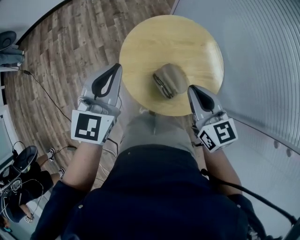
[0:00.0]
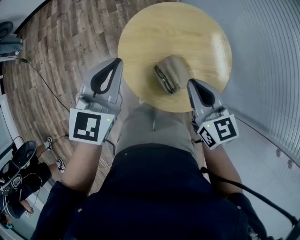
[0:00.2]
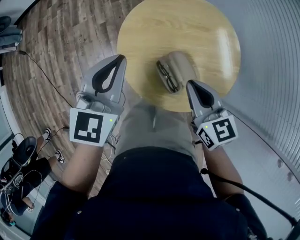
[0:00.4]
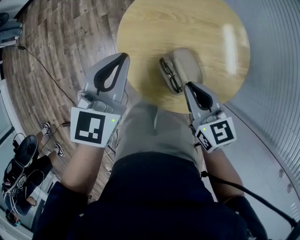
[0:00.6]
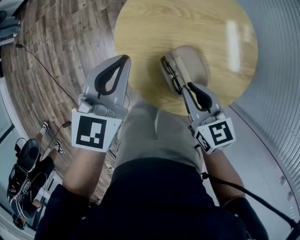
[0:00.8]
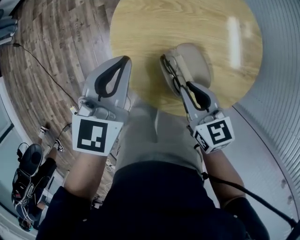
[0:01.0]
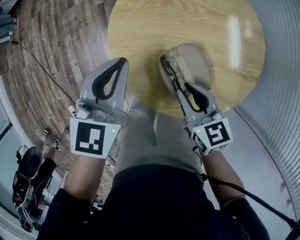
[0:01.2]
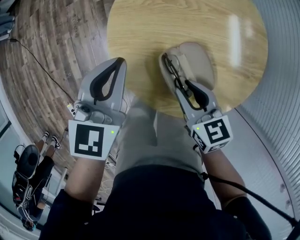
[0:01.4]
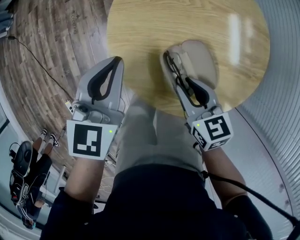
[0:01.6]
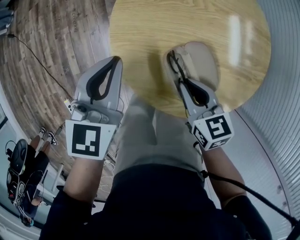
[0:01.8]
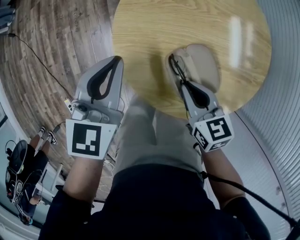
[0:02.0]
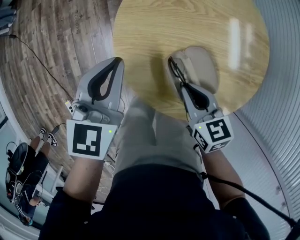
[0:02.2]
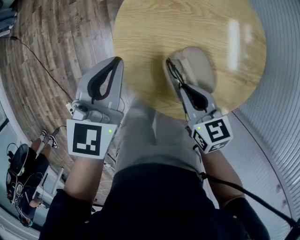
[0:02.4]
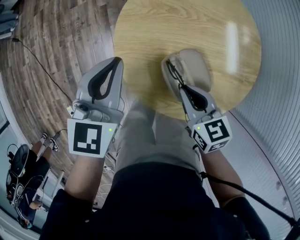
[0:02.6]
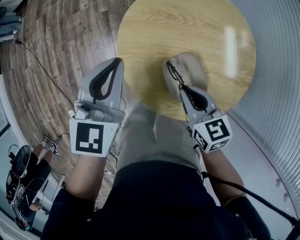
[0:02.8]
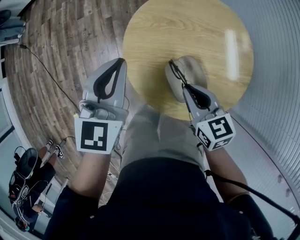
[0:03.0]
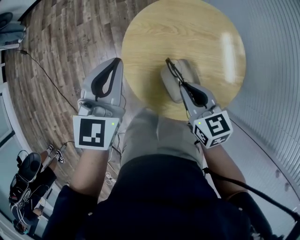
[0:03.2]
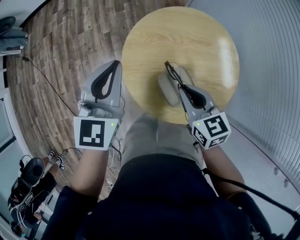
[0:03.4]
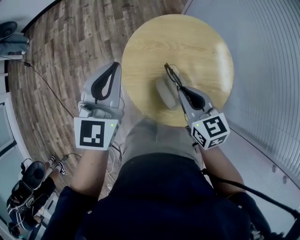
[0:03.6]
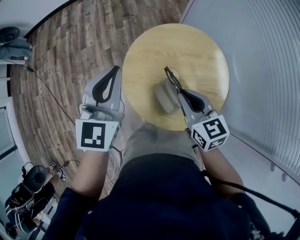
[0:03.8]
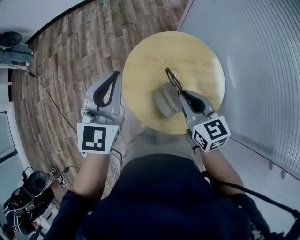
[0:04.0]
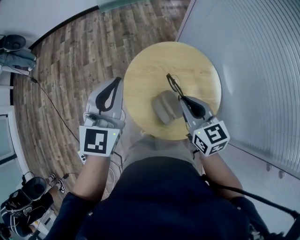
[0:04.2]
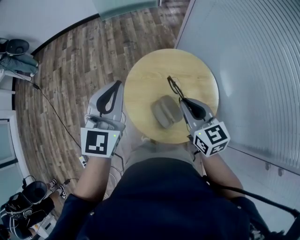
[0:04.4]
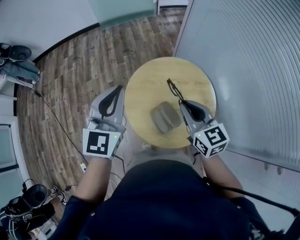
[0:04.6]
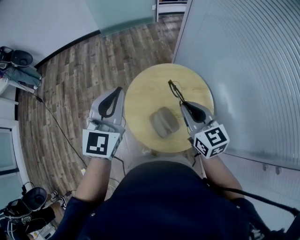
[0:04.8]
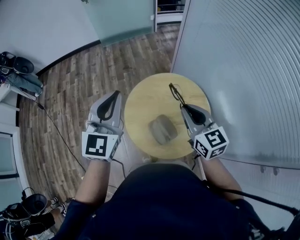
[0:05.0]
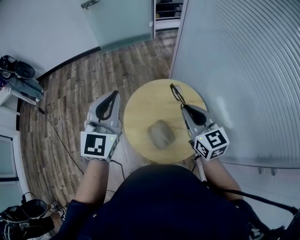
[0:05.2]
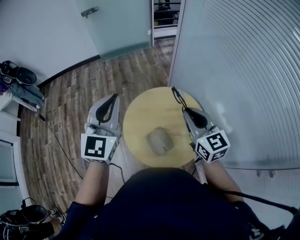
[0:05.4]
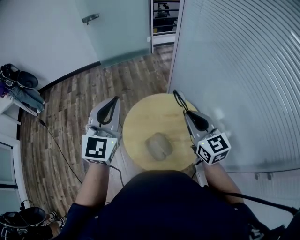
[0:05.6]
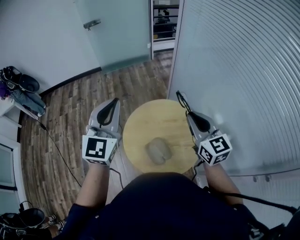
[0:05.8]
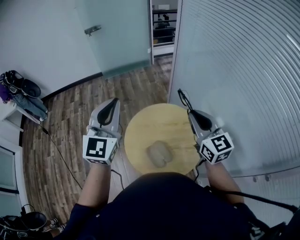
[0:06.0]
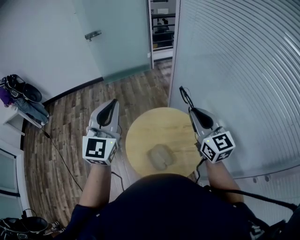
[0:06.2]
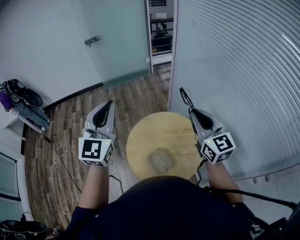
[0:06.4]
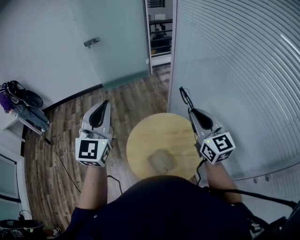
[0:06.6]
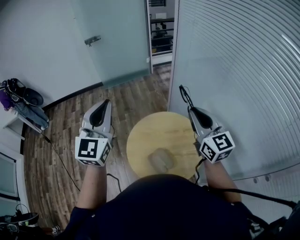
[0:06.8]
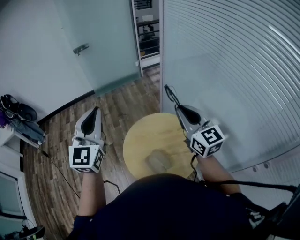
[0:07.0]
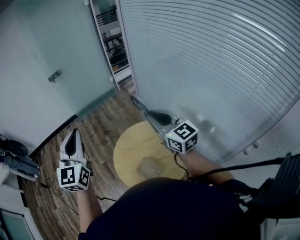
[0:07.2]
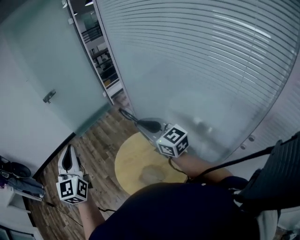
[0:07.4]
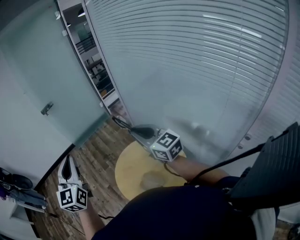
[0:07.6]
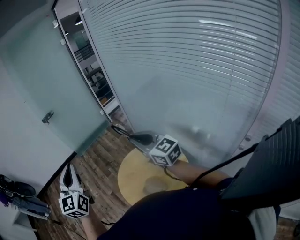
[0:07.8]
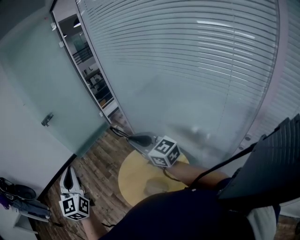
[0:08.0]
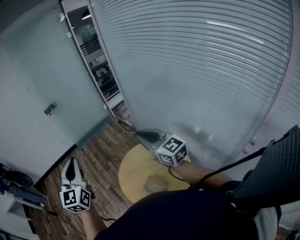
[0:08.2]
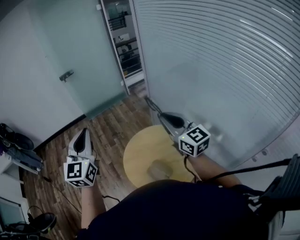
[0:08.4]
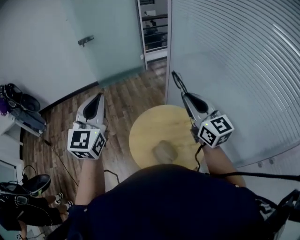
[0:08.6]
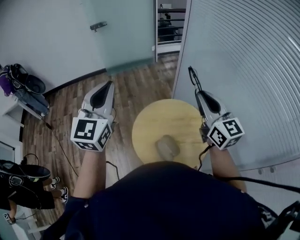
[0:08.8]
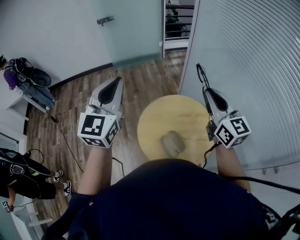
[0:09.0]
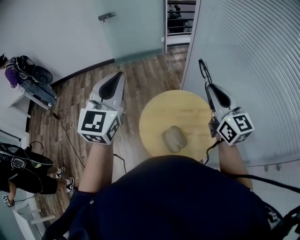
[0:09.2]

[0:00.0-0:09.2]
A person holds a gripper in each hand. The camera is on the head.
0:00.0 to 0:01.6: Both grippers move downward, some 20 cm. The left gripper changes its angle by approximately 20 degrees; the right gripper rotates roughly 30 degrees, and opens up.
0:01.6 to 0:03.0: Both grippers move upward, some 10 cm. The right gripper closes its fingers.
0:03.0 to 0:04.6: The grippers both shift upward by some 20 cm. The right gripper changes its angle by some 20 degrees.
0:04.6 to 0:06.2: The left gripper heads upward, covering about 15 cm, while the right gripper shifts about 20 cm upward and to the right, and changes its angle by approximately 20 degrees.
0:06.2 to 0:07.6: The left gripper ends up roughly 5 cm from where it was. Meanwhile the right gripper ends up roughly 5 cm from where it was.
0:07.6 to 0:09.2: The grippers move only a little.

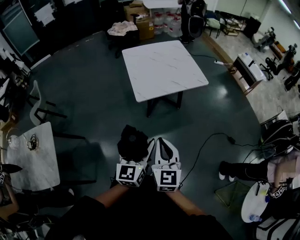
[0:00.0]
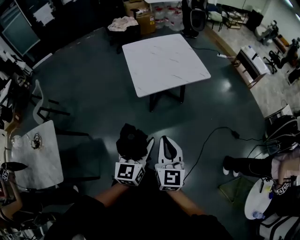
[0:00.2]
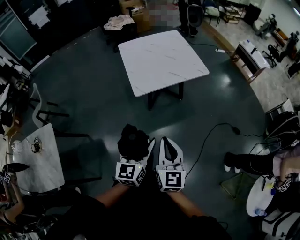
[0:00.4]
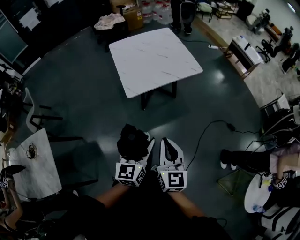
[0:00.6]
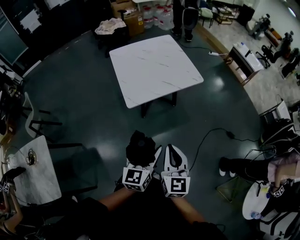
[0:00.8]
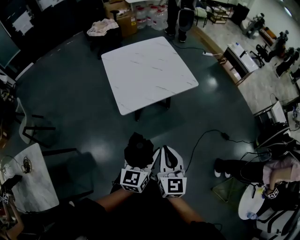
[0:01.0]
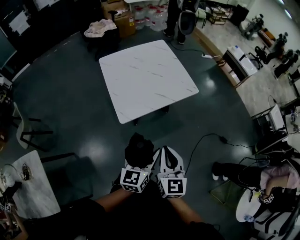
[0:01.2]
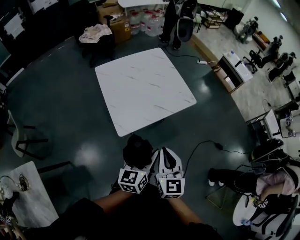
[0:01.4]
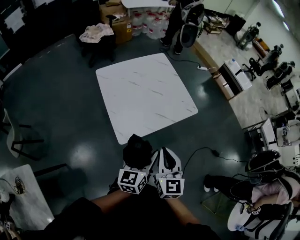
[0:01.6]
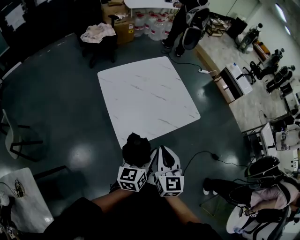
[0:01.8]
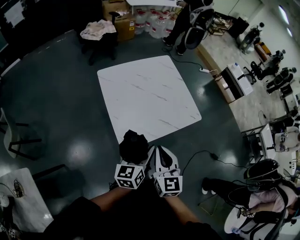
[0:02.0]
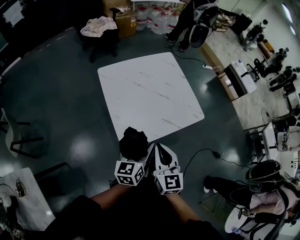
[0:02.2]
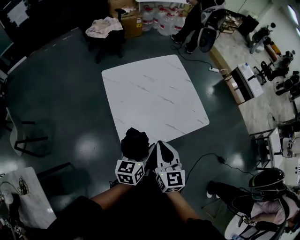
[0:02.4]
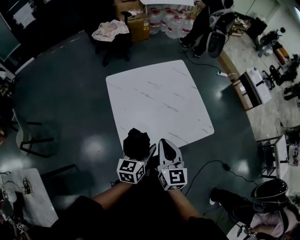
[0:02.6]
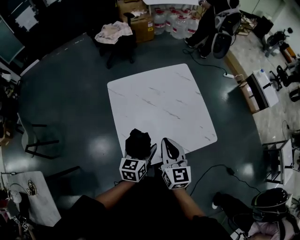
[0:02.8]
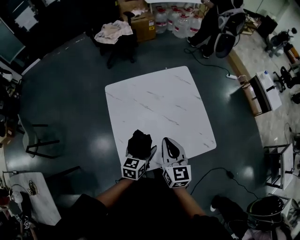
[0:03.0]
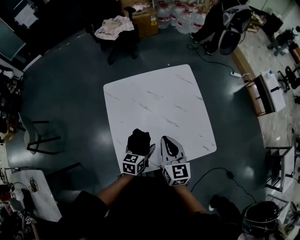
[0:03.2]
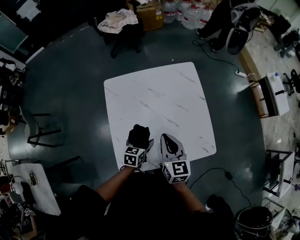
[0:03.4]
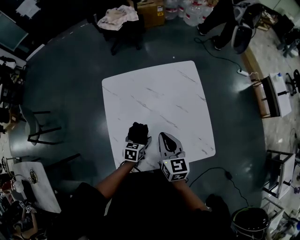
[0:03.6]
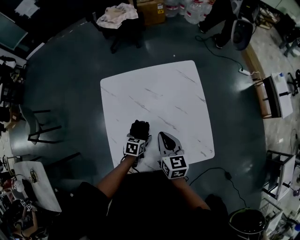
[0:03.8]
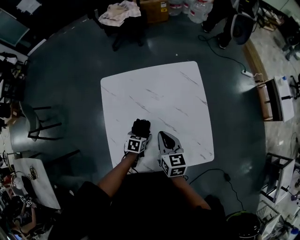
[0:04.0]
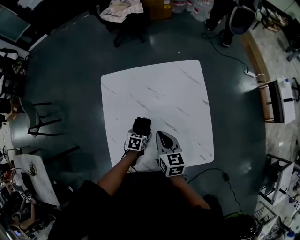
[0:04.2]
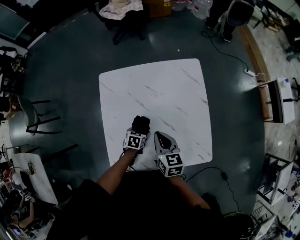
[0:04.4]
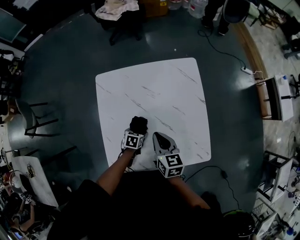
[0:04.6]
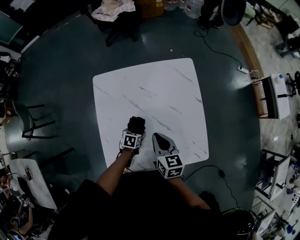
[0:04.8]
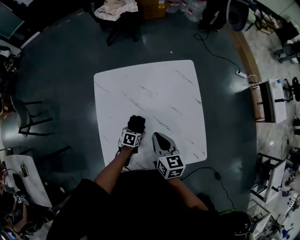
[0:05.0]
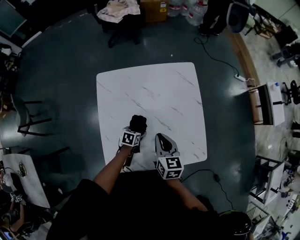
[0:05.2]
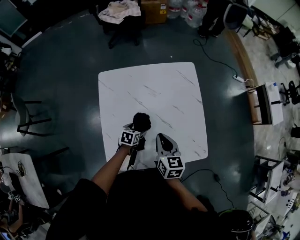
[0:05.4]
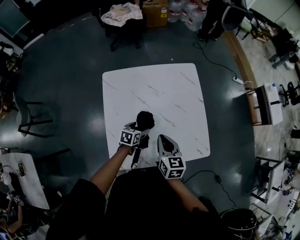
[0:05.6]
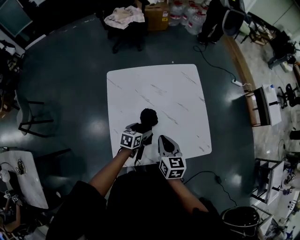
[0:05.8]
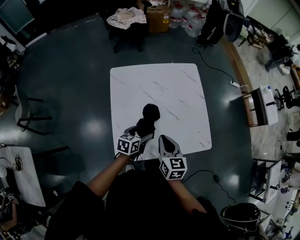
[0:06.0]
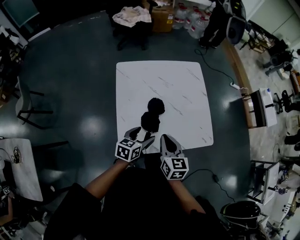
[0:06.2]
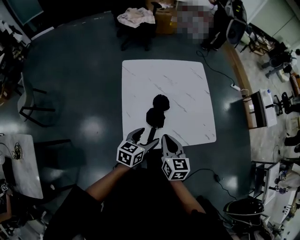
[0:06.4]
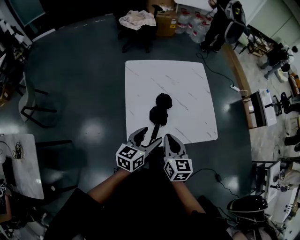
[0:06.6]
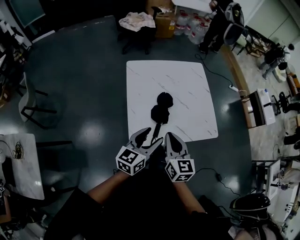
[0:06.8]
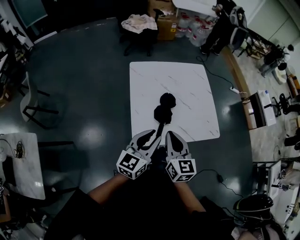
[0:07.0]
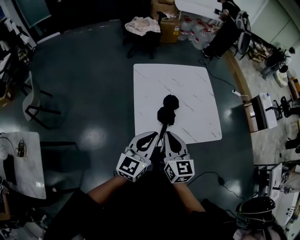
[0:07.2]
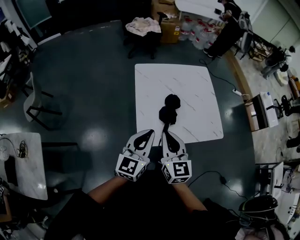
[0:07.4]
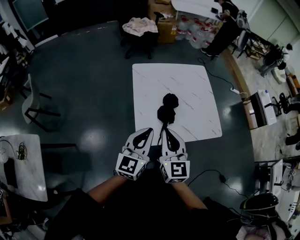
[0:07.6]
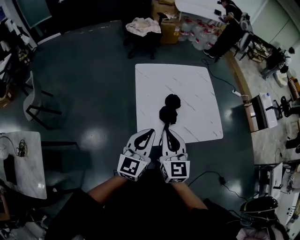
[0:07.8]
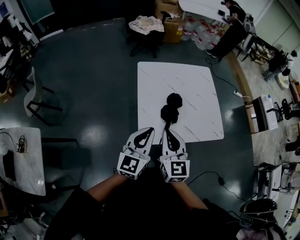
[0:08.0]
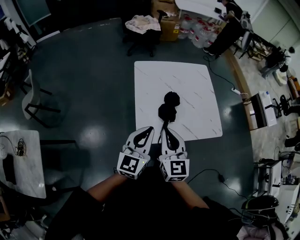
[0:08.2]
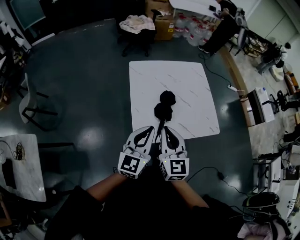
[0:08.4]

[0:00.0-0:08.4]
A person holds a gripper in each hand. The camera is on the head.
0:00.0 to 0:01.4: The grippers both shift forward by some 25 cm. The left gripper swivels roughly 20 degrees.
0:01.4 to 0:02.8: The two grippers go roughly 30 cm forward.
0:02.8 to 0:04.2: The right gripper shifts about 20 cm forward and downward, and turns by approximately 30 degrees. The left gripper travels downward and forward by roughly 30 cm, and tilts its fingers approximately 40 degrees downward.
0:04.2 to 0:05.6: The left gripper moves some 5 cm, while the right gripper travels backward by some 5 cm.
0:05.6 to 0:07.0: The right gripper is displaced backward, upward and to the left by about 25 cm. Meanwhile the left gripper shifts about 40 cm upward and backward, angles its fingers upward, by approximately 40 degrees, and closes.

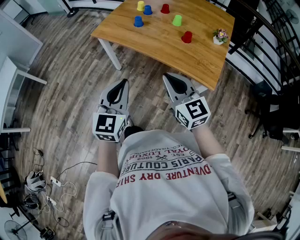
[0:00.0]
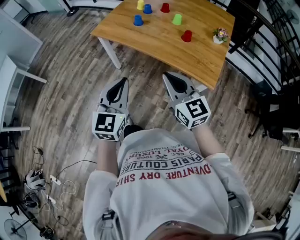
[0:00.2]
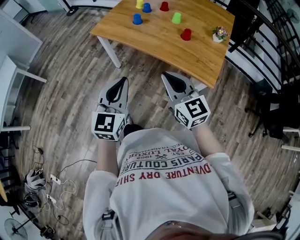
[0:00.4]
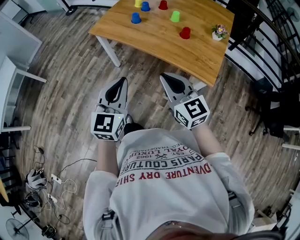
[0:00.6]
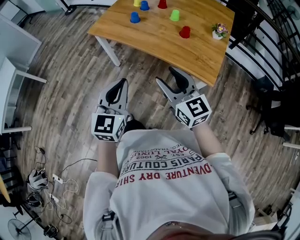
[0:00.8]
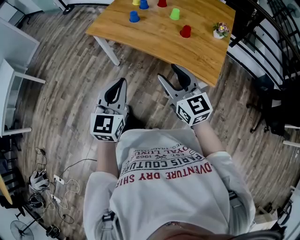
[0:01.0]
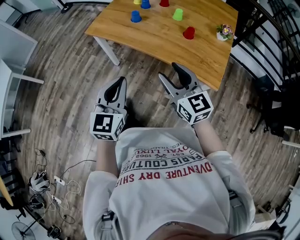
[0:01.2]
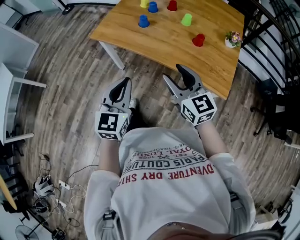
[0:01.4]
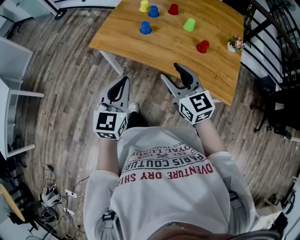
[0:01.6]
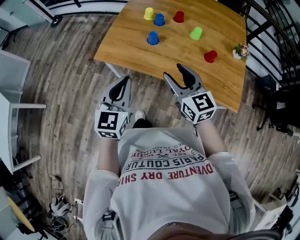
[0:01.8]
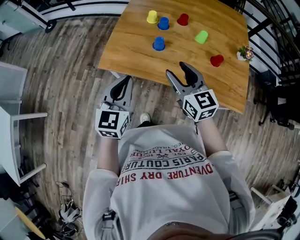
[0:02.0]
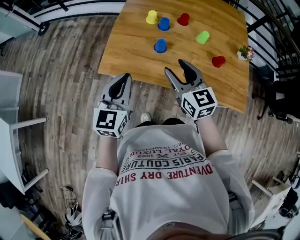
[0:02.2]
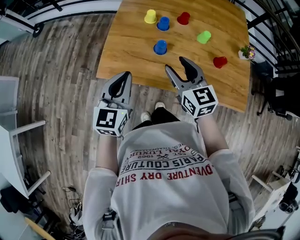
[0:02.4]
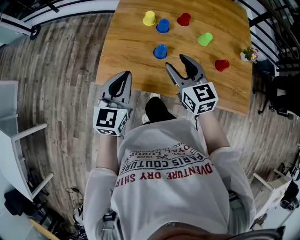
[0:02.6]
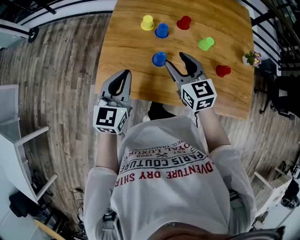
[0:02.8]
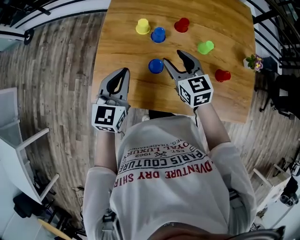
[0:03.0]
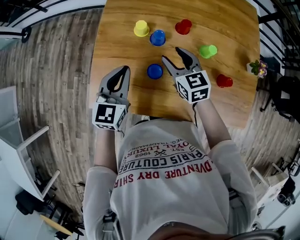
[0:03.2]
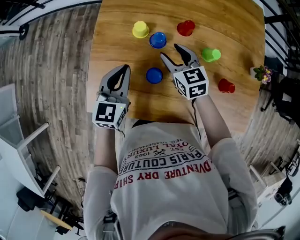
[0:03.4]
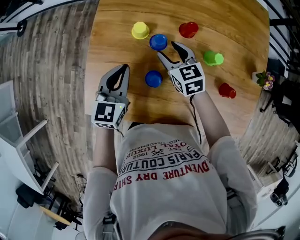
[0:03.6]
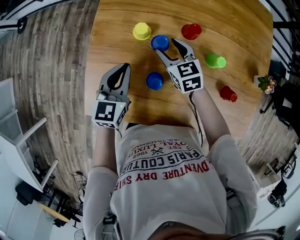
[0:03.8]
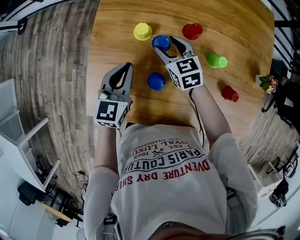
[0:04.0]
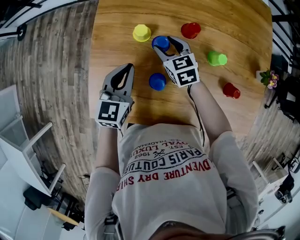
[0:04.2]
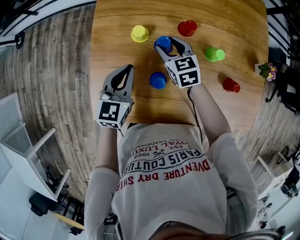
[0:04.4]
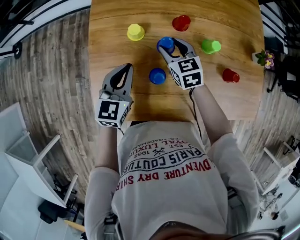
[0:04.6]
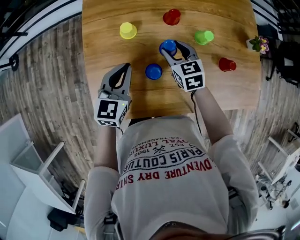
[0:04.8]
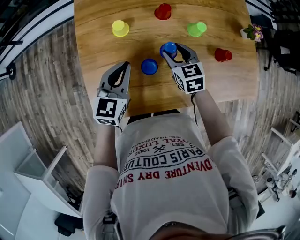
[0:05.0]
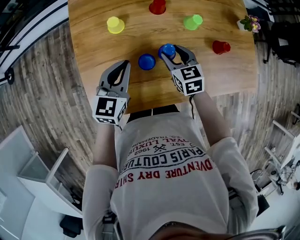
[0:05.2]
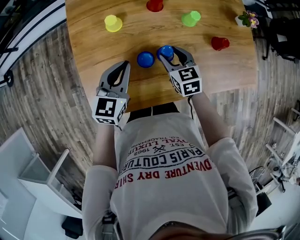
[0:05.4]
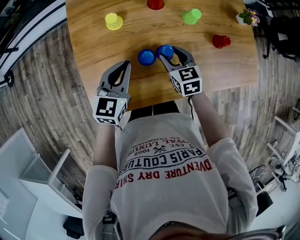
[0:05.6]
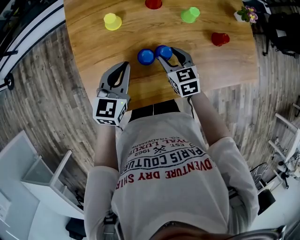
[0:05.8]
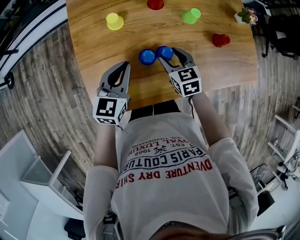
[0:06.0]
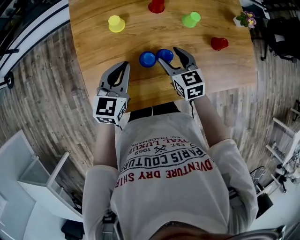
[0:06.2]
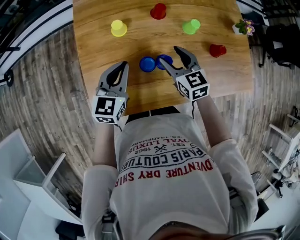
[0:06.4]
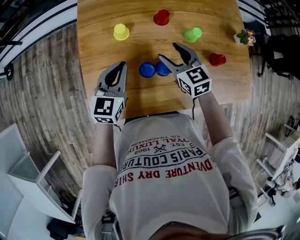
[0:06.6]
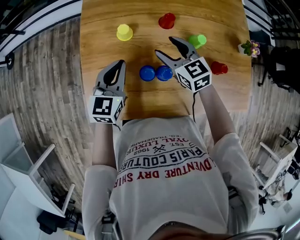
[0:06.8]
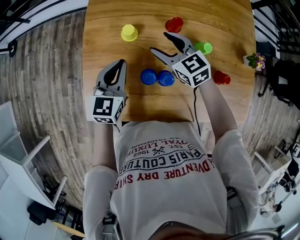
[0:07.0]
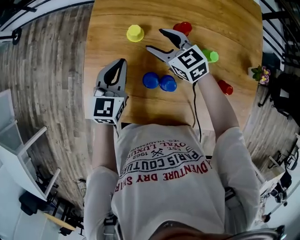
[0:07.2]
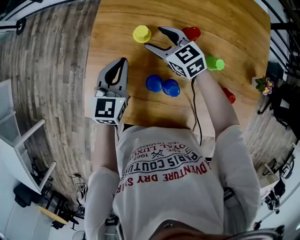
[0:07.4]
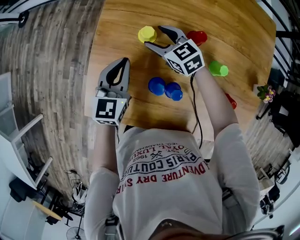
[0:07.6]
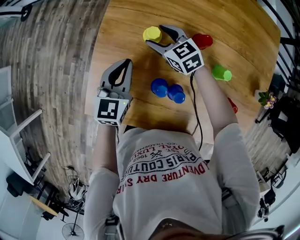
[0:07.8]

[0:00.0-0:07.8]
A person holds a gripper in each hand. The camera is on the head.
0:00.0 to 0:01.6: Both grippers travel together forward, roughly 20 cm. The right gripper opens its fingers.
0:01.6 to 0:03.2: The grippers both shift forward by roughly 40 cm. The right gripper rotates some 20 degrees.
0:03.2 to 0:04.6: The right gripper moves forward and downward, roughly 10 cm, while the left gripper travels forward by about 5 cm.
0:04.6 to 0:06.2: The left gripper goes approximately 5 cm backward. The right gripper moves backward and to the right, some 15 cm.
0:06.2 to 0:07.8: The left gripper moves approximately 10 cm, and swivels some 30 degrees. The right gripper changes place by some 25 cm, and changes its angle by about 50 degrees.
